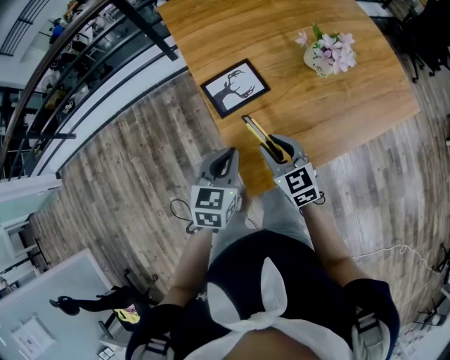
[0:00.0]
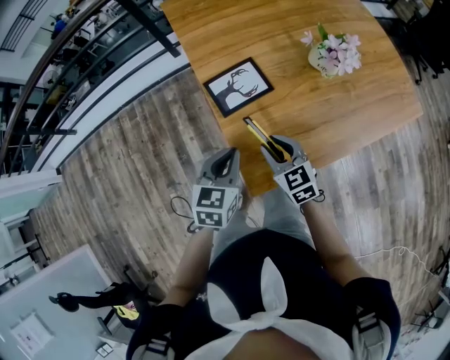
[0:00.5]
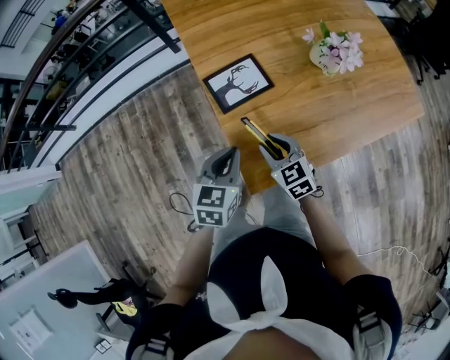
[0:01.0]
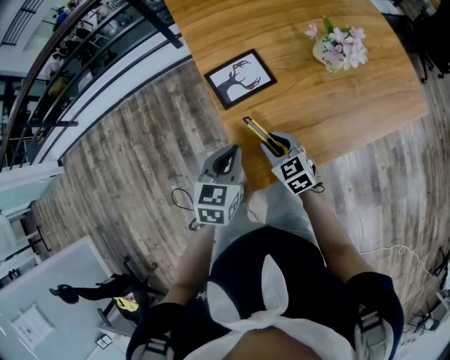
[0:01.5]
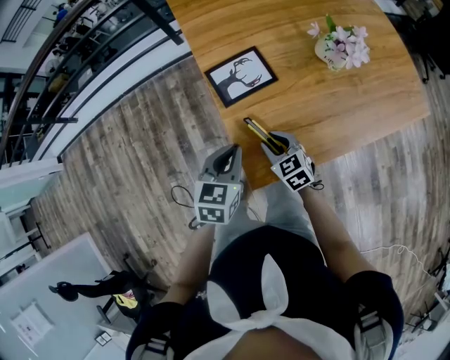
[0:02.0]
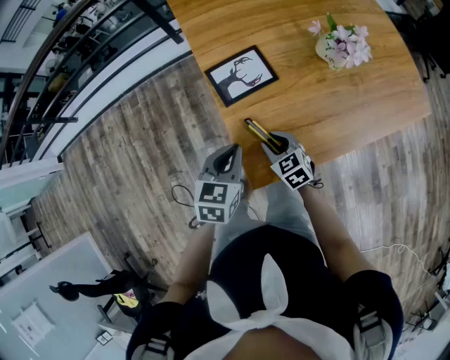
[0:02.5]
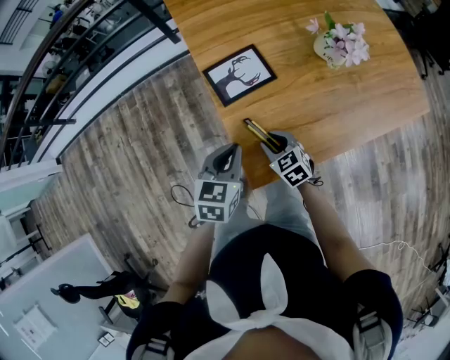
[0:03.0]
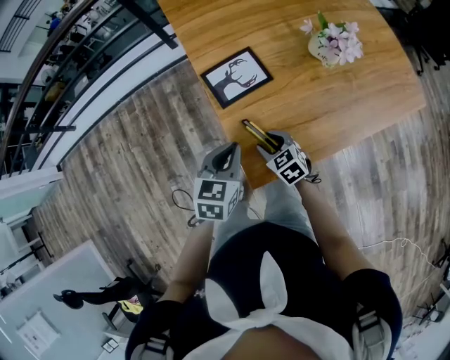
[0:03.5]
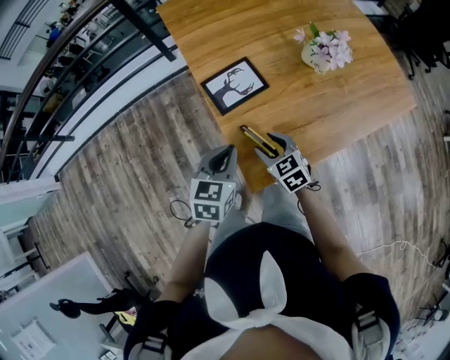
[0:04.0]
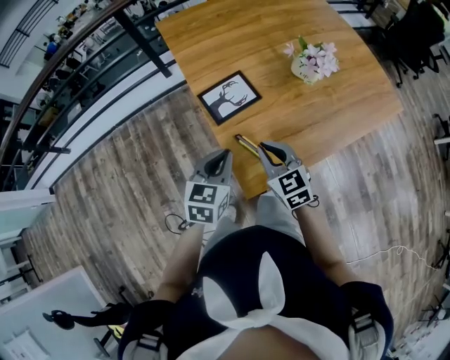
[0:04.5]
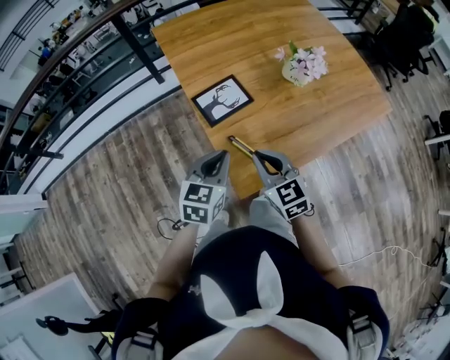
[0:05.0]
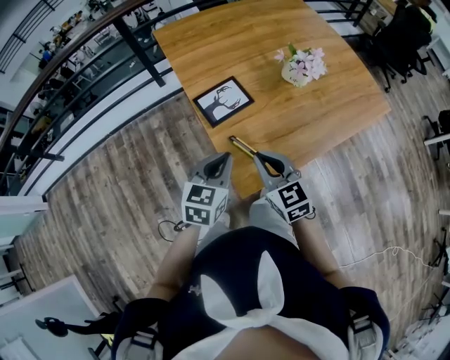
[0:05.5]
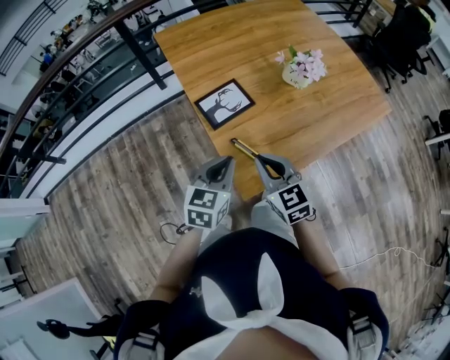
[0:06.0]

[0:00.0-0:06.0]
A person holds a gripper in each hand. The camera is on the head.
0:00.0 to 0:02.0: The right gripper goes approximately 10 cm downward.
0:02.0 to 0:04.0: The right gripper opens.
0:04.0 to 0:06.0: The left gripper ends up approximately 5 cm from where it was, while the right gripper is displaced upward by about 15 cm, and closes its fingers.

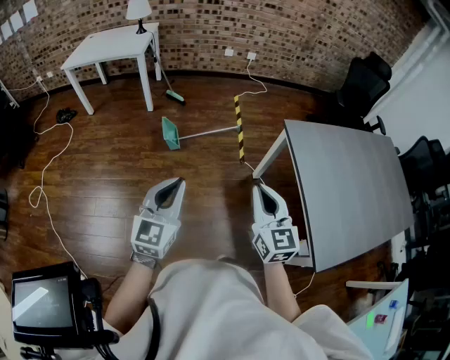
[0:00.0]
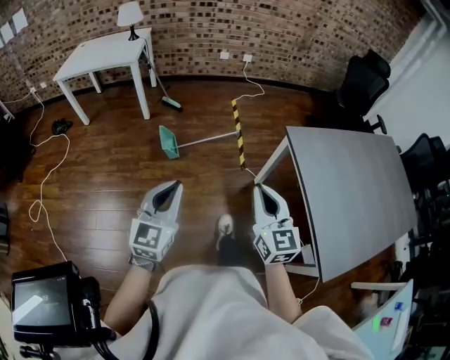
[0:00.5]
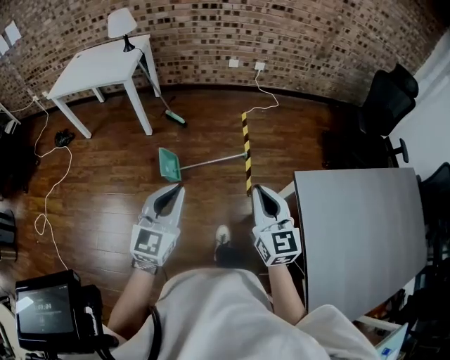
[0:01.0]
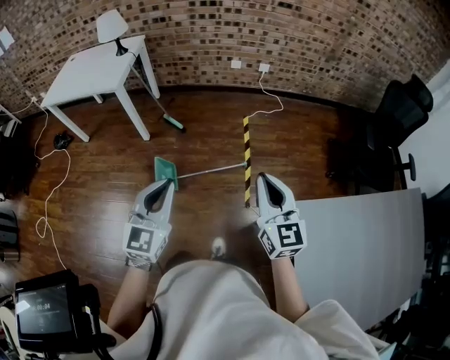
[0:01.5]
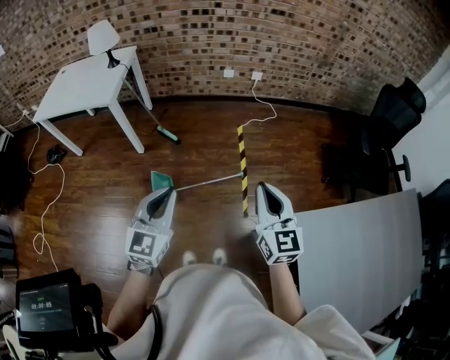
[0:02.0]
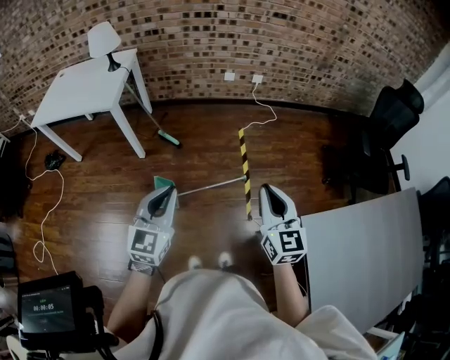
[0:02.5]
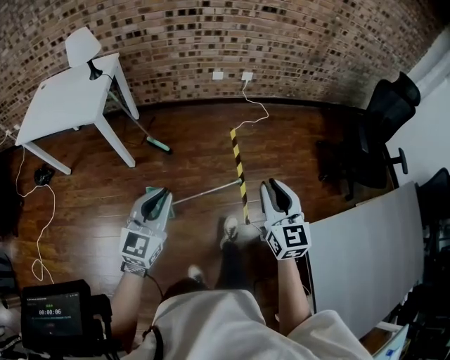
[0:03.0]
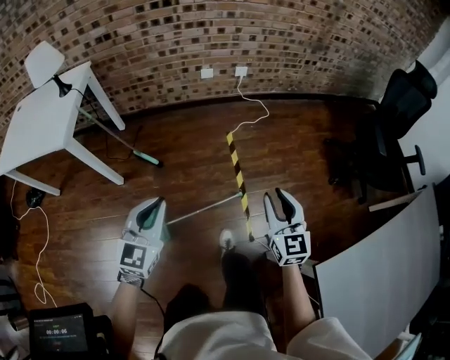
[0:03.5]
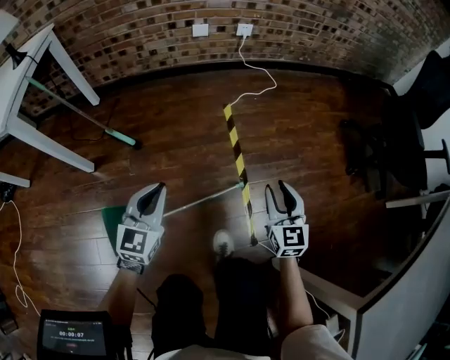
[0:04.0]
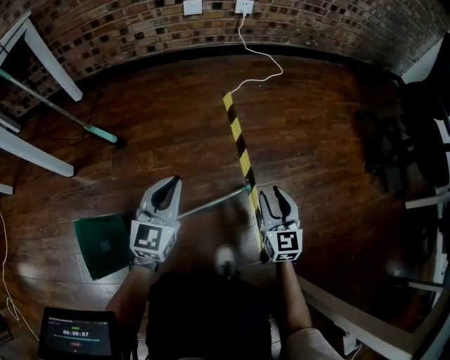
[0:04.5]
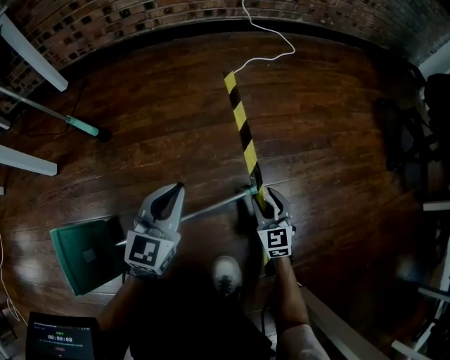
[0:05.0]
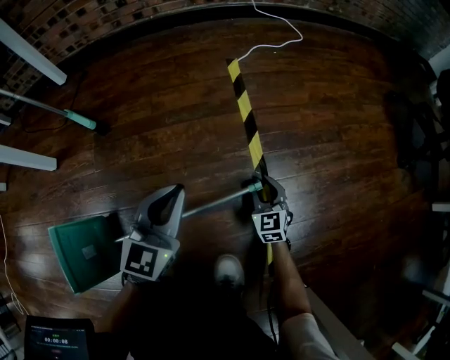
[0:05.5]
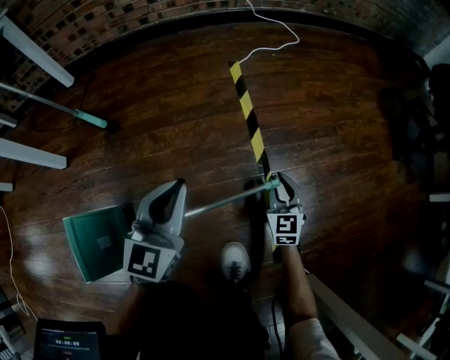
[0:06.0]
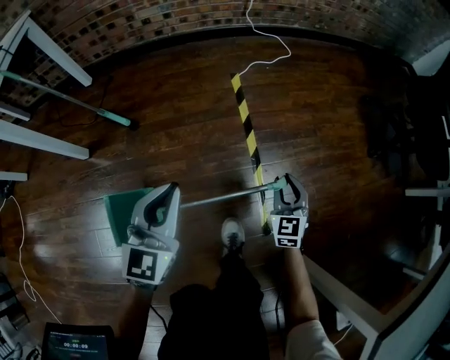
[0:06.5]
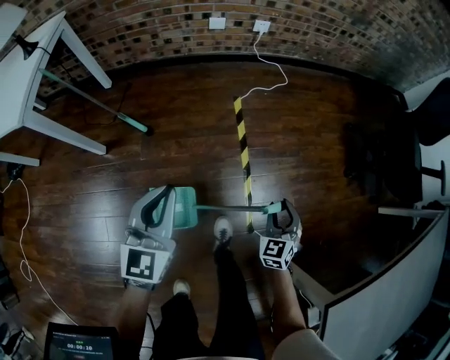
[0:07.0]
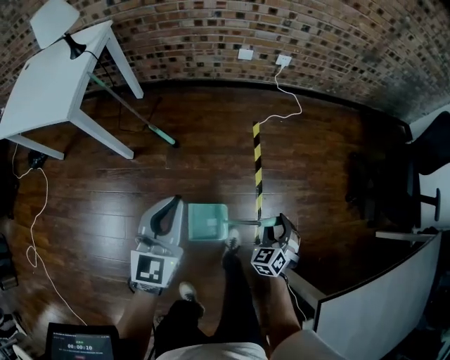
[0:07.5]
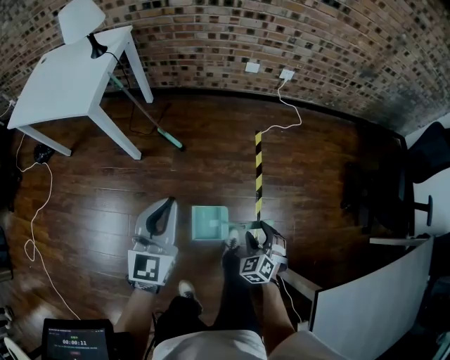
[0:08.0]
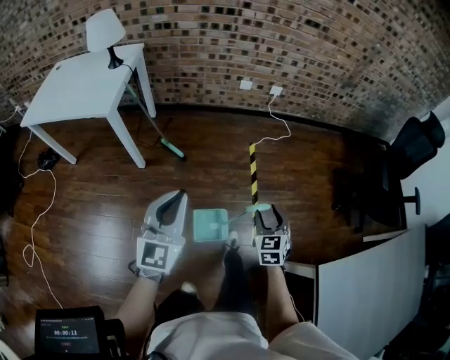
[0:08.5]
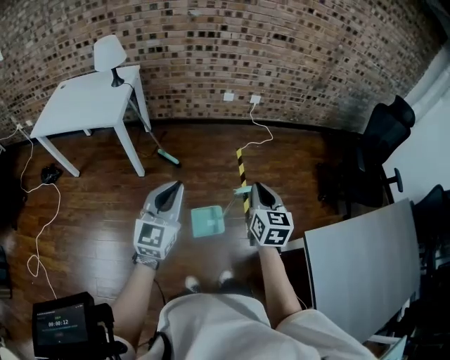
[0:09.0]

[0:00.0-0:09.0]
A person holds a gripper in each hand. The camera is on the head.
0:00.0 to 0:02.0: The pair of grippers is taken forward, some 50 cm.
0:02.0 to 0:04.5: Both grippers move downward and forward, about 80 cm. The right gripper opens.
0:04.5 to 0:07.0: Both grippers travel together upward, approximately 30 cm. The right gripper changes its angle by some 30 degrees.
0:07.0 to 0:09.0: The left gripper heads upward and backward, covering some 40 cm. Meanwhile the right gripper travels upward, backward and to the left by roughly 50 cm, turns by roughly 40 degrees, and closes.

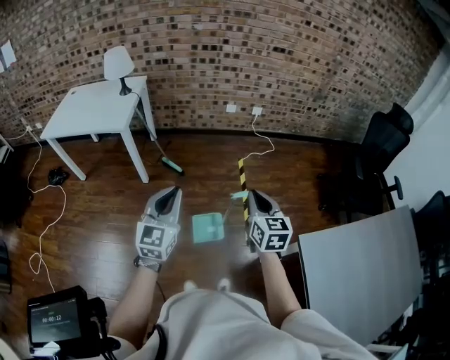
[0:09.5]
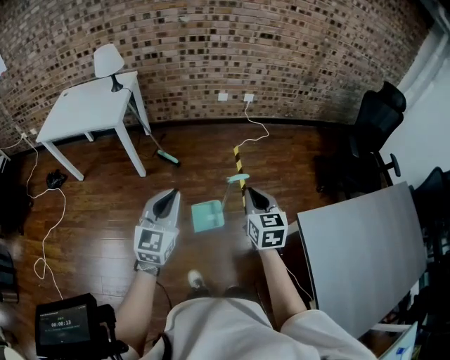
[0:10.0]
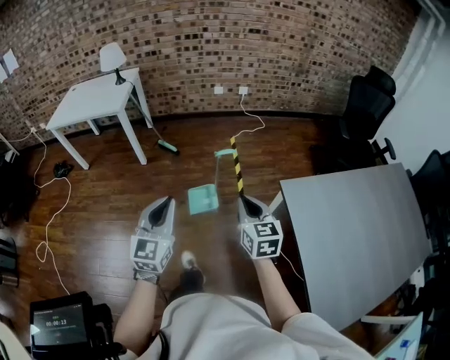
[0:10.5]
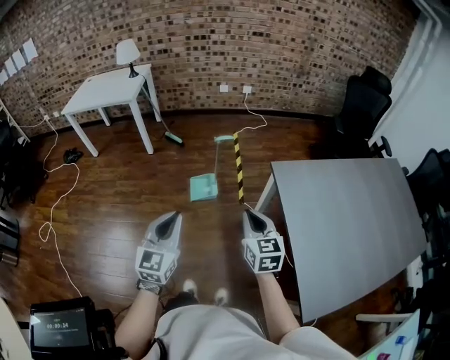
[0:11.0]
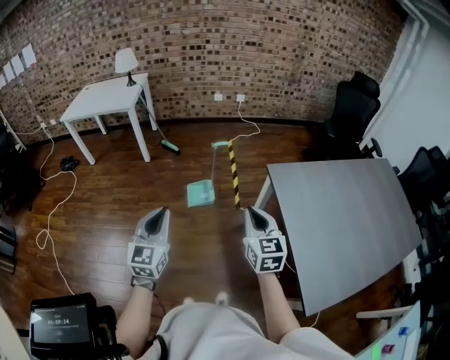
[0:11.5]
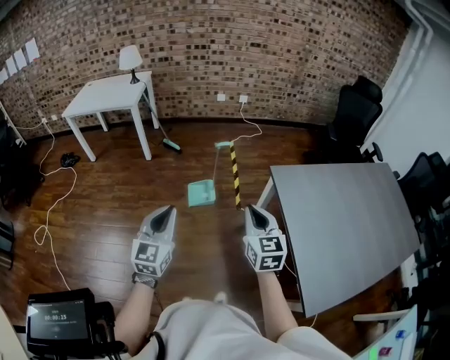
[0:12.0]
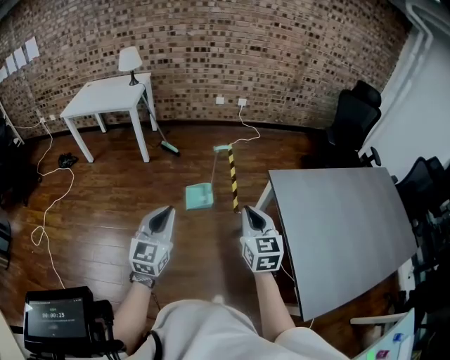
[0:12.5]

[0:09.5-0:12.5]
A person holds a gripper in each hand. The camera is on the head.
0:09.5 to 0:11.0: Both grippers are carried backward, about 40 cm.
0:11.0 to 0:12.5: The left gripper moves to the left, approximately 5 cm; the right gripper moves upward, some 5 cm.

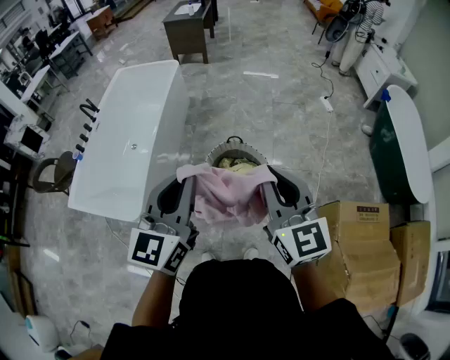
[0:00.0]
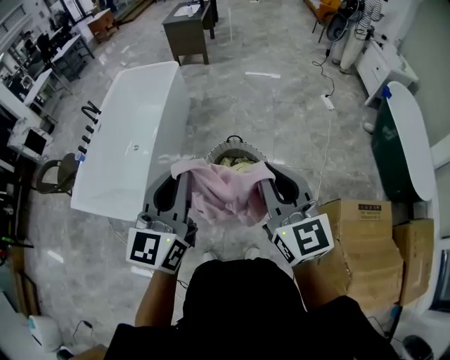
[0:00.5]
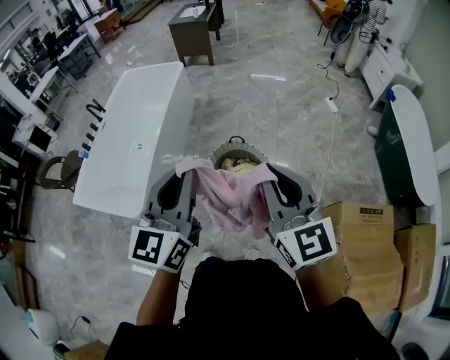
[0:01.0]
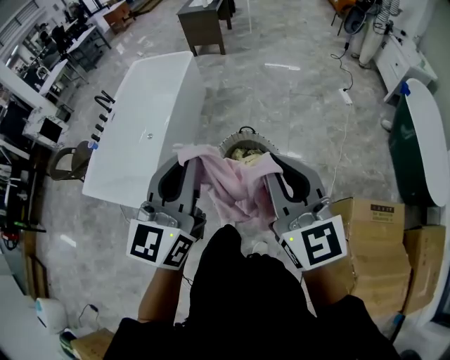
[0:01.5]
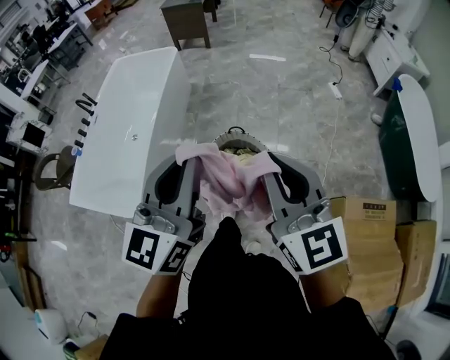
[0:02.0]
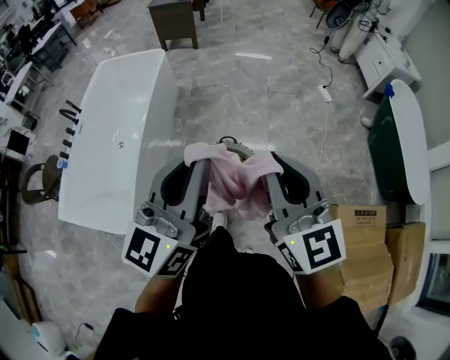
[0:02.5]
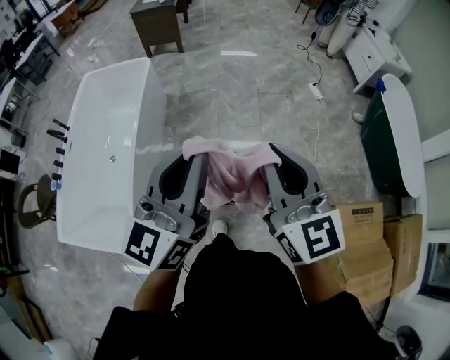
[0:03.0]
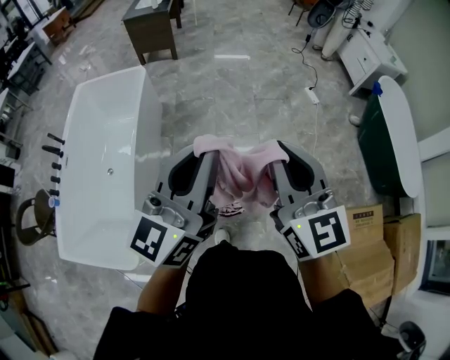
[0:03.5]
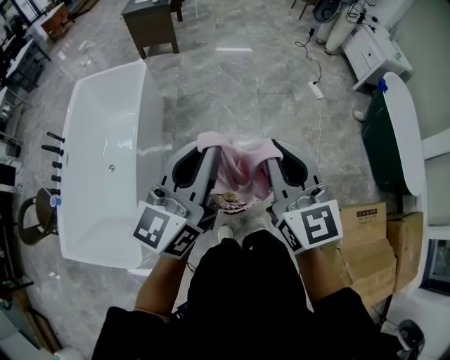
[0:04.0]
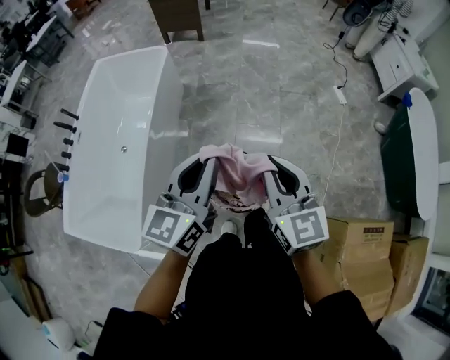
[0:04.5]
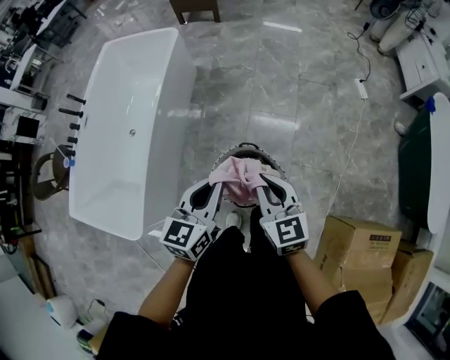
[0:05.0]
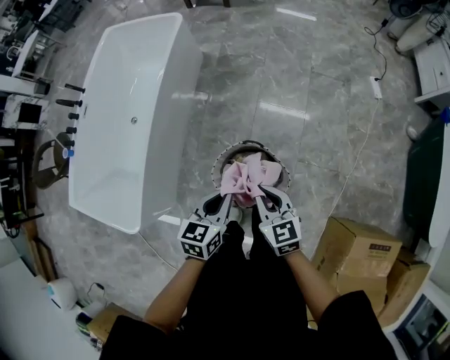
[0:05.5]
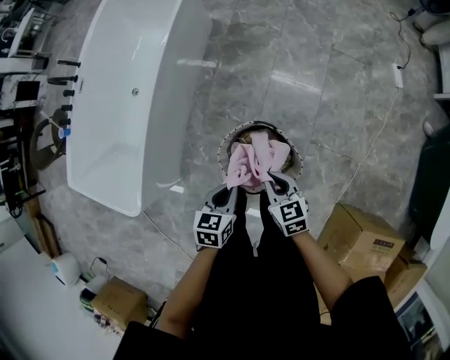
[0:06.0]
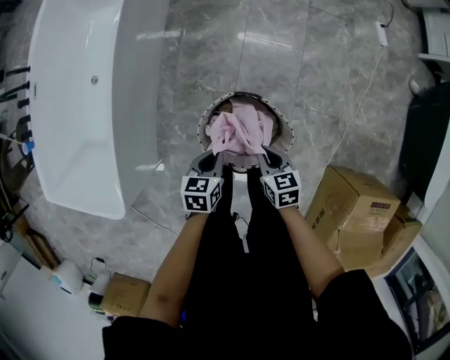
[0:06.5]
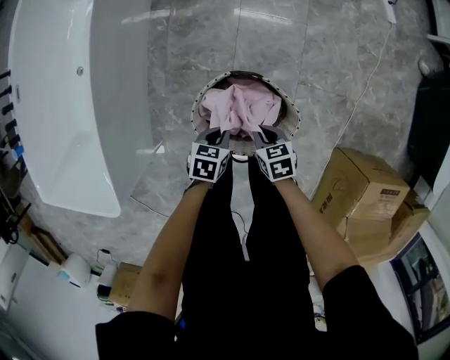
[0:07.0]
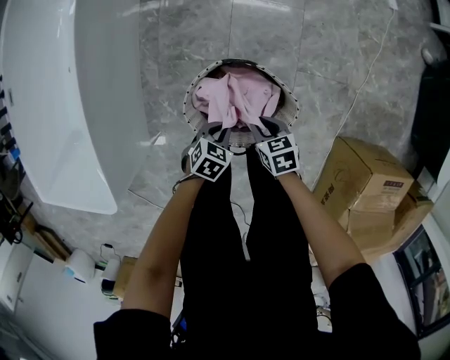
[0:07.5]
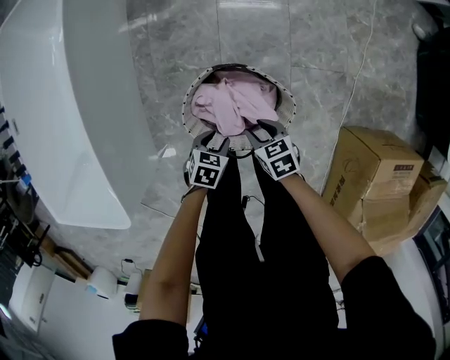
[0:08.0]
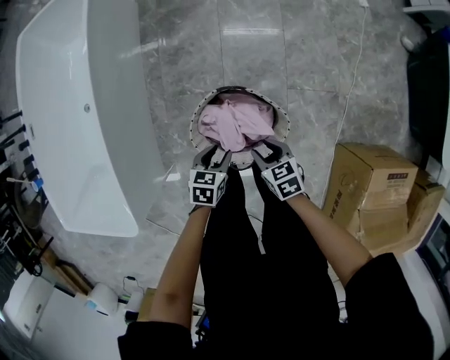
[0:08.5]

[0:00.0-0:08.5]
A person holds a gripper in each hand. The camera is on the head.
0:00.0 to 0:02.0: The left gripper moves forward and to the right, approximately 10 cm, while the right gripper is displaced forward by roughly 5 cm.
0:02.0 to 0:04.0: Both grippers move forward, approximately 30 cm. The left gripper turns by approximately 20 degrees.
0:04.0 to 0:06.5: Both grippers move downward, some 60 cm. The right gripper tilts its fingers about 50 degrees downward, while the left gripper tilts its fingers approximately 60 degrees downward.
0:06.5 to 0:08.5: The left gripper opens up, while the right gripper moves some 15 cm downward and comes back, and opens up.
